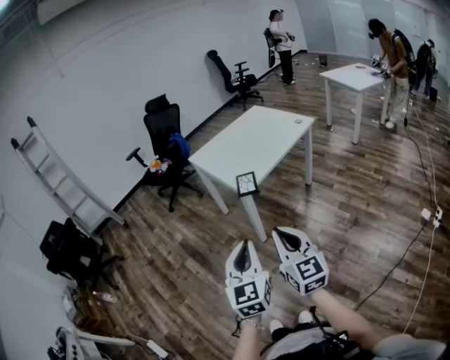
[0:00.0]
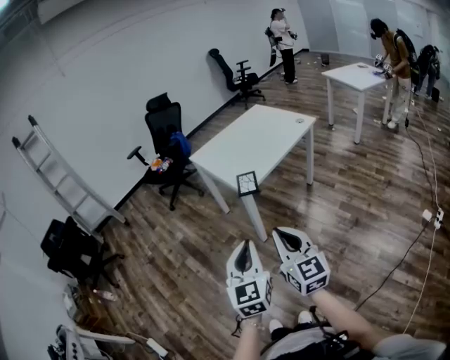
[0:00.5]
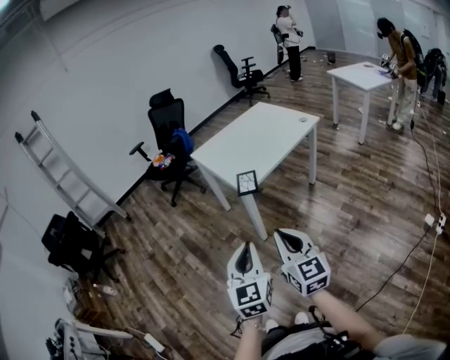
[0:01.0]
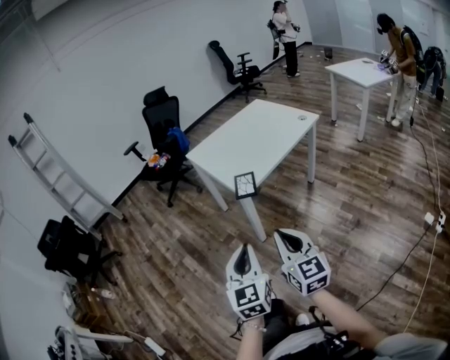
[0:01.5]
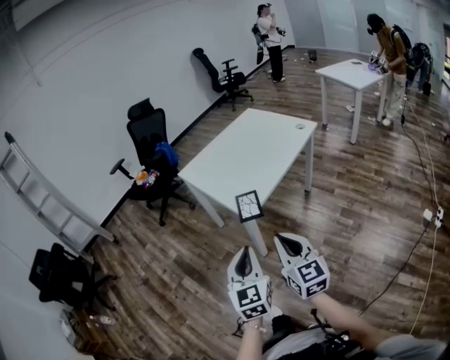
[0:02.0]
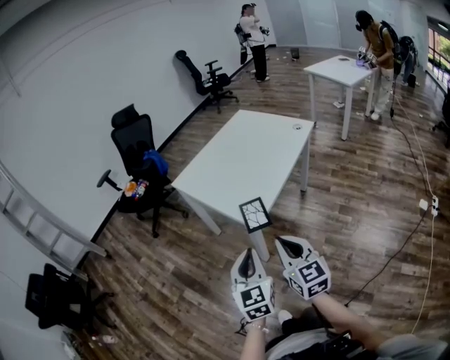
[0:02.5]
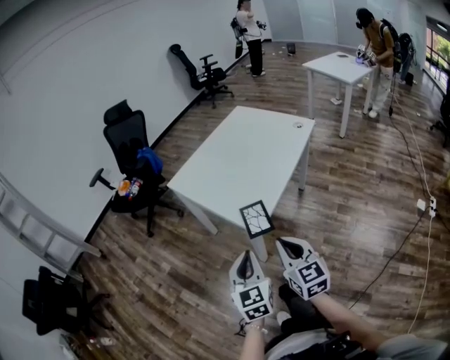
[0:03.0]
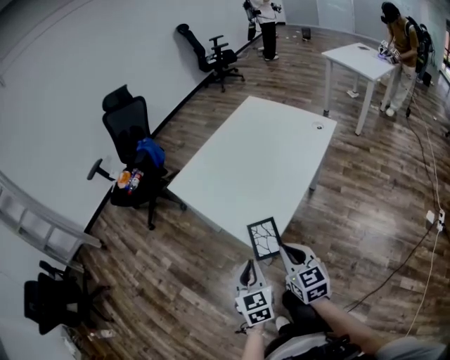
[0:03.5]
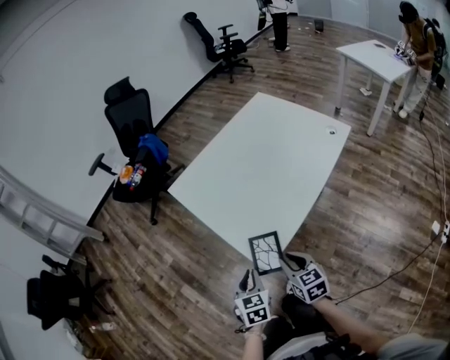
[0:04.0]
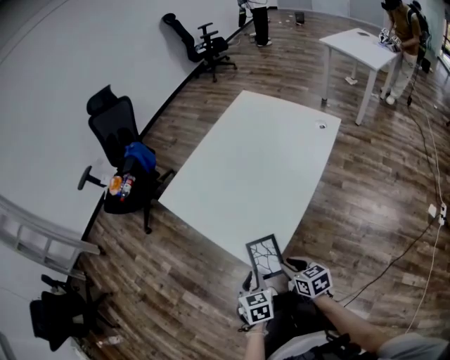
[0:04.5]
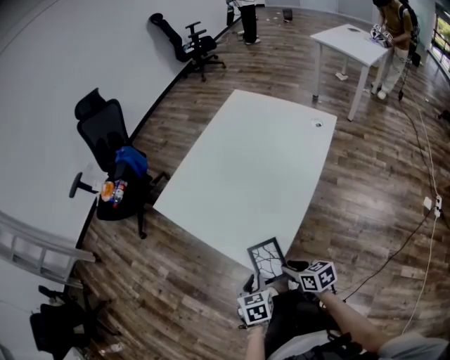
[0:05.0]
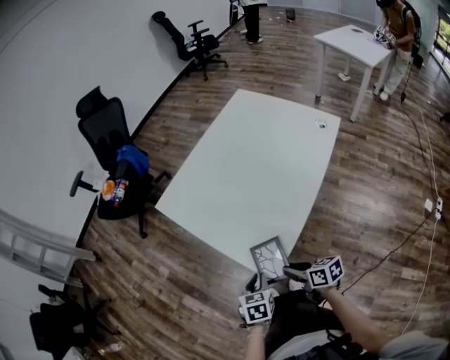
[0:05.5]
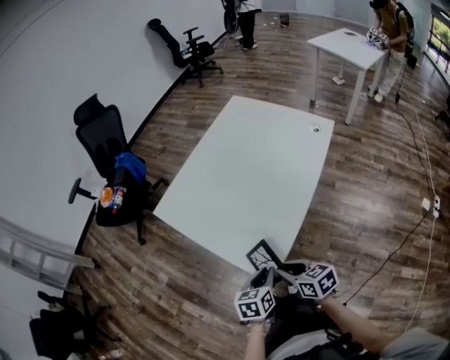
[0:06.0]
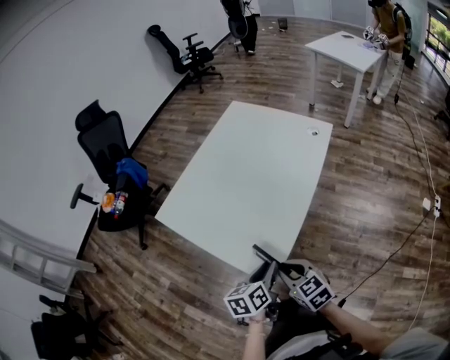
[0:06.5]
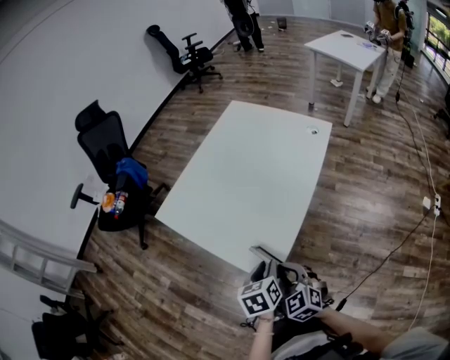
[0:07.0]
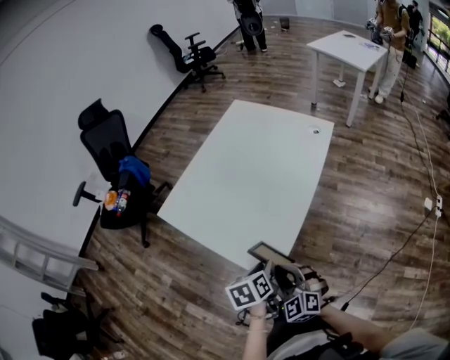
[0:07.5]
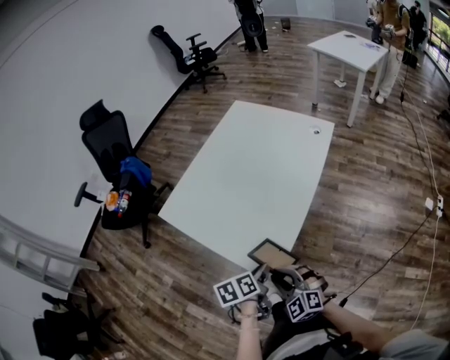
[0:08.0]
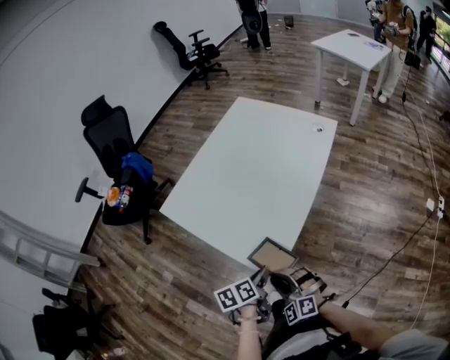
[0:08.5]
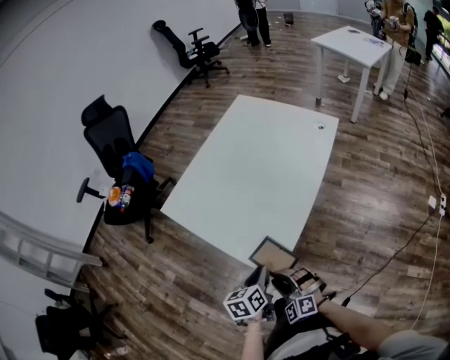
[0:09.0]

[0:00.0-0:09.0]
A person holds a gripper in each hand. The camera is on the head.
0:00.0 to 0:02.0: The grippers both shift forward by approximately 20 cm.
0:02.0 to 0:04.5: The two grippers go approximately 40 cm forward and downward. The right gripper tilts its fingers roughly 30 degrees downward, and opens; the left gripper points its fingers approximately 40 degrees further downward.
0:04.5 to 0:07.0: The left gripper moves upward, to the right and forward, some 10 cm, and changes its angle by some 20 degrees. Meanwhile the right gripper moves upward, approximately 10 cm, and changes its angle by roughly 40 degrees.
0:07.0 to 0:09.0: The left gripper moves some 5 cm, while the right gripper shifts some 10 cm downward and backward, and swivels about 30 degrees.

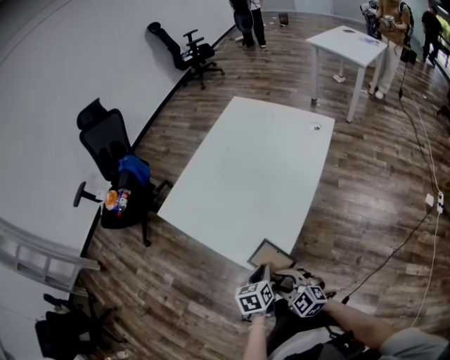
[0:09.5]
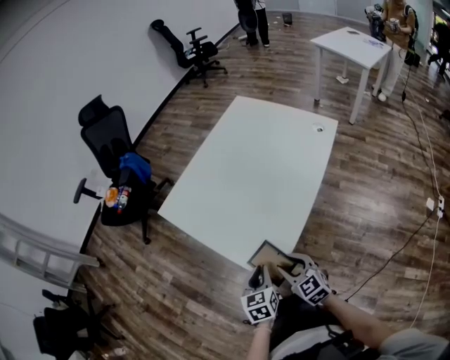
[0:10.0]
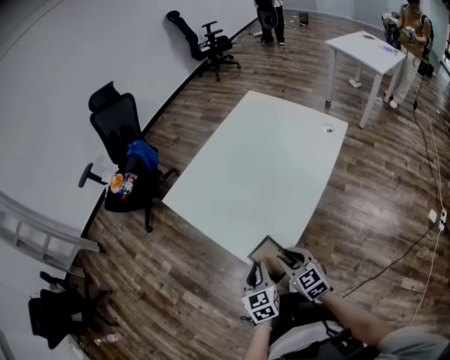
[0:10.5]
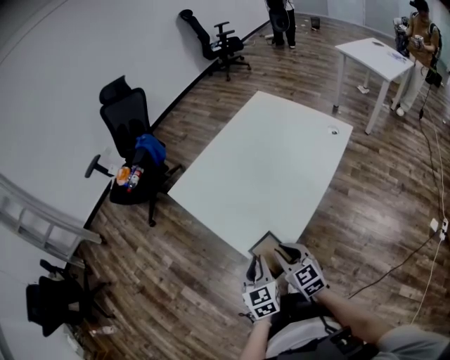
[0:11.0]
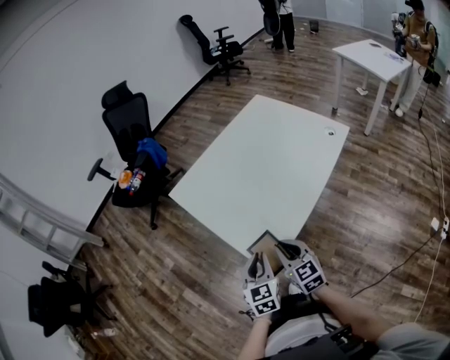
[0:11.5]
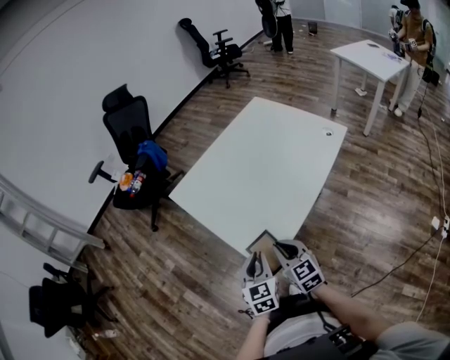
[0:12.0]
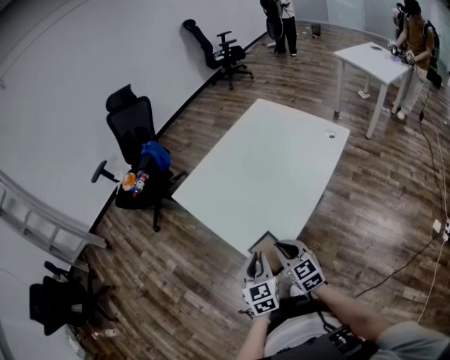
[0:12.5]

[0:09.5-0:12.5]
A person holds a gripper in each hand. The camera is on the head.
0:09.5 to 0:11.0: The left gripper shifts some 5 cm upward, and swivels approximately 30 degrees. The right gripper heads forward and to the right, covering approximately 10 cm, and closes up.
0:11.0 to 0:12.5: The grippers make only small movements.

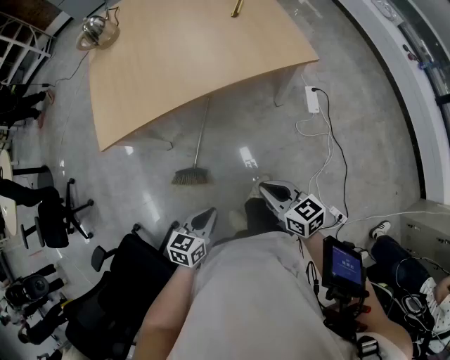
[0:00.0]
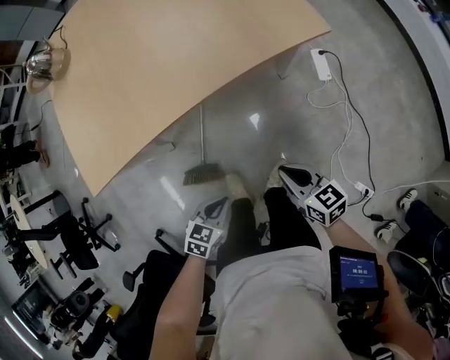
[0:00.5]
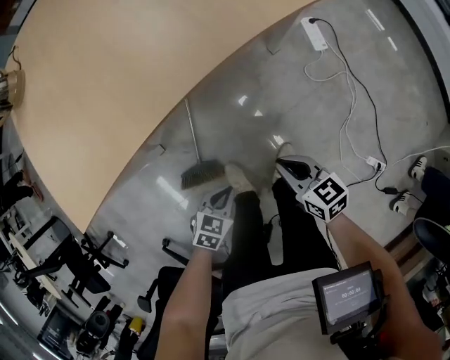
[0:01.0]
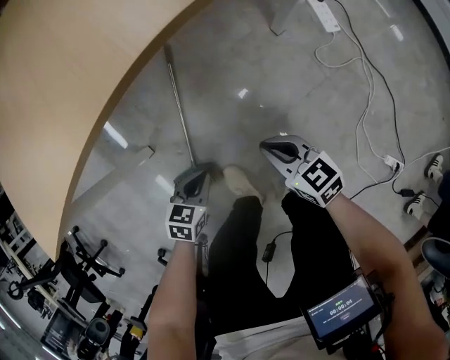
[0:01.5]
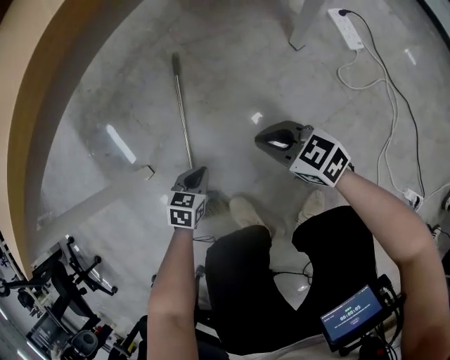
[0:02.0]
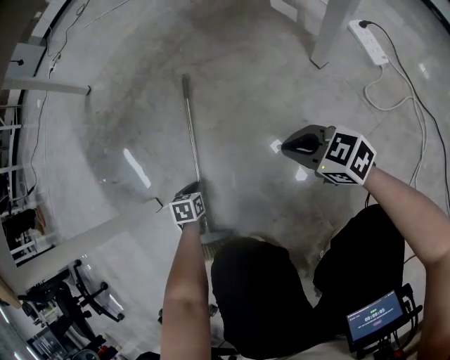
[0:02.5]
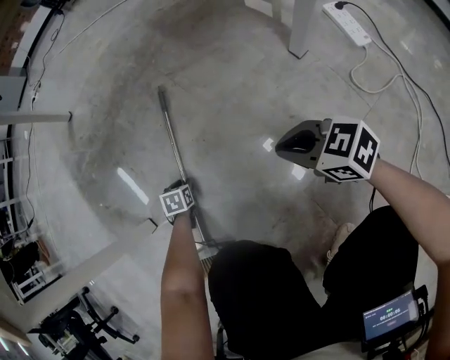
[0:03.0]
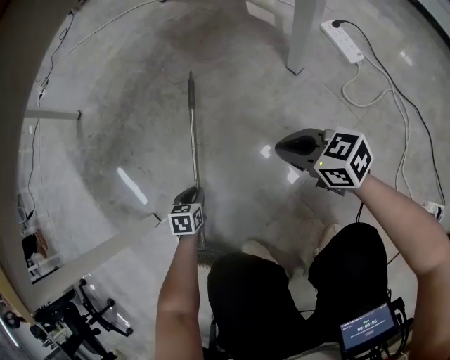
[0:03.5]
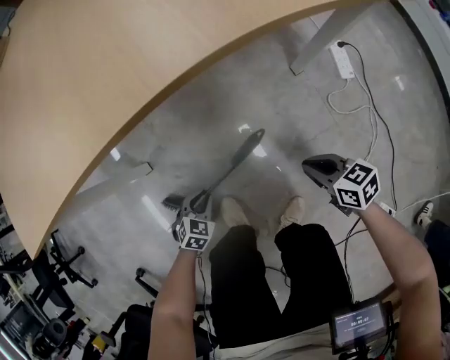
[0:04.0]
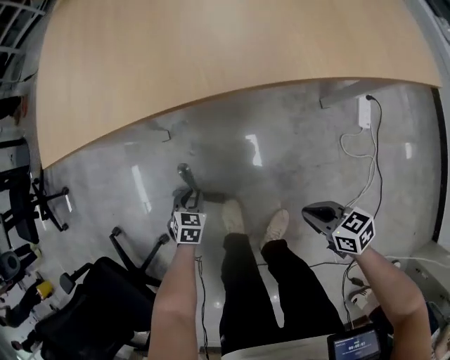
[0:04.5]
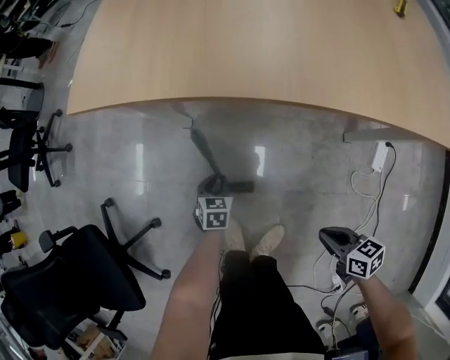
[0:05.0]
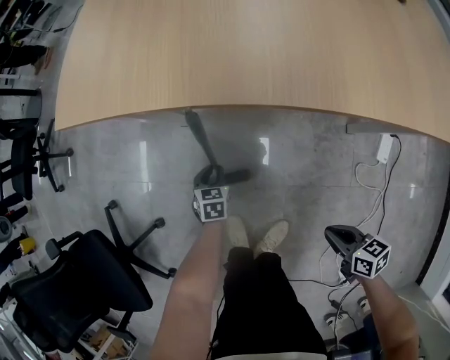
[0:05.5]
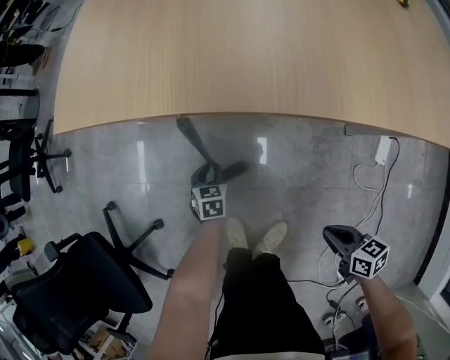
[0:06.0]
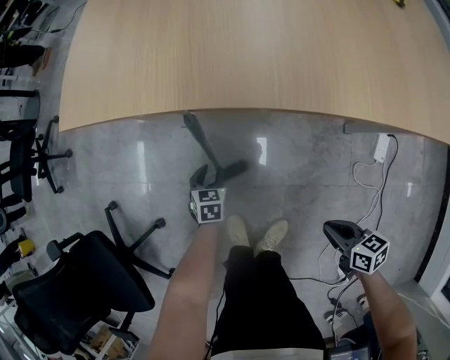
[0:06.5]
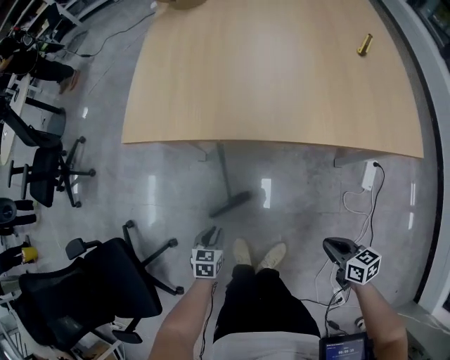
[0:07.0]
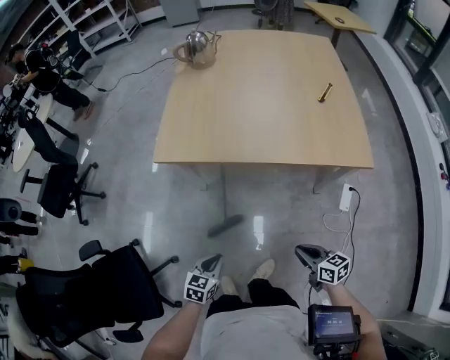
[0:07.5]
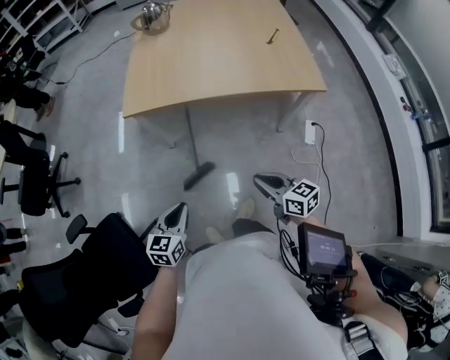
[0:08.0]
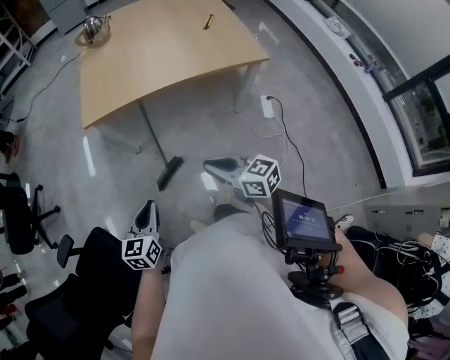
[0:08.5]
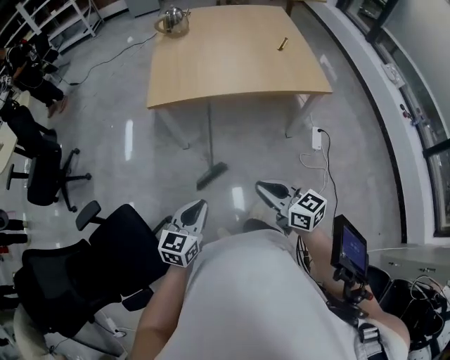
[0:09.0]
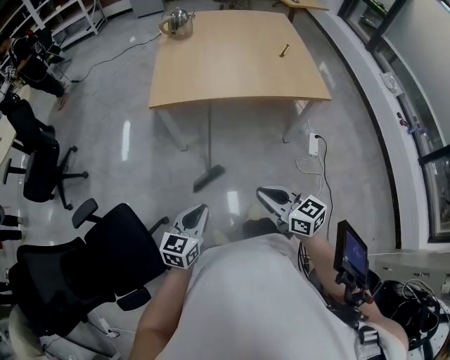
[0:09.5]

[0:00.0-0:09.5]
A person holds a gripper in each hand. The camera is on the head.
0:00.0 to 0:02.0: The two grippers go approximately 50 cm downward and forward. The left gripper changes its angle by some 30 degrees.
0:02.0 to 0:04.0: The left gripper travels backward by approximately 5 cm, and travels downward and back again, approximately 25 cm each way, while the right gripper travels to the right, backward and upward by roughly 15 cm, and changes its angle by roughly 20 degrees.
0:04.0 to 0:05.5: The right gripper shifts about 10 cm upward. Meanwhile the left gripper ends up approximately 10 cm from where it was, and rolls counterclockwise, seen from behind, by roughly 50 degrees.
0:05.5 to 0:07.5: The left gripper heads upward and backward, covering about 40 cm, and swivels roughly 20 degrees, while the right gripper heads upward, covering some 20 cm.
0:07.5 to 0:09.5: The right gripper shifts approximately 30 cm to the left, upward and backward, and rotates about 20 degrees. The left gripper is displaced upward, backward and to the left by some 25 cm, and swivels about 20 degrees.

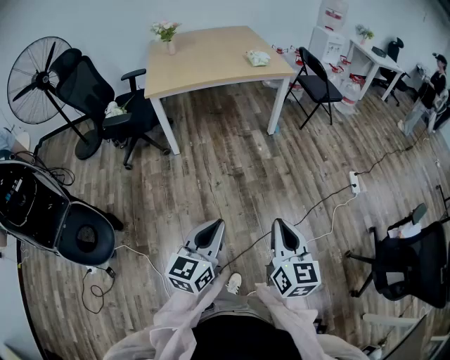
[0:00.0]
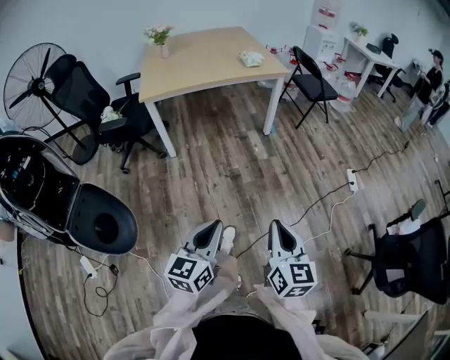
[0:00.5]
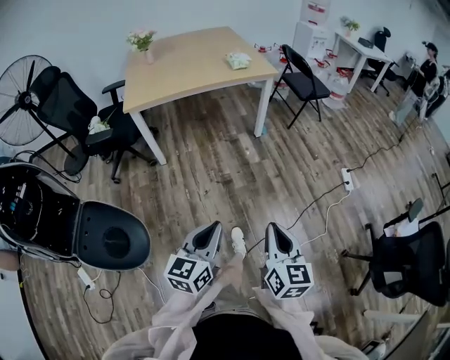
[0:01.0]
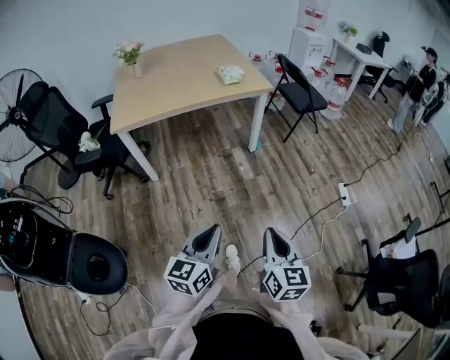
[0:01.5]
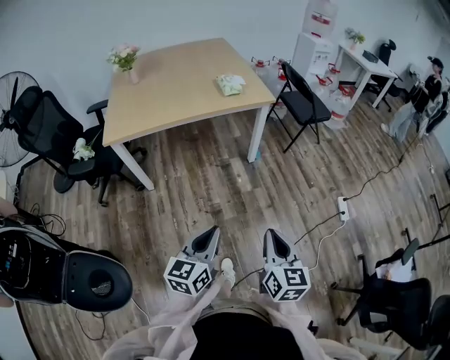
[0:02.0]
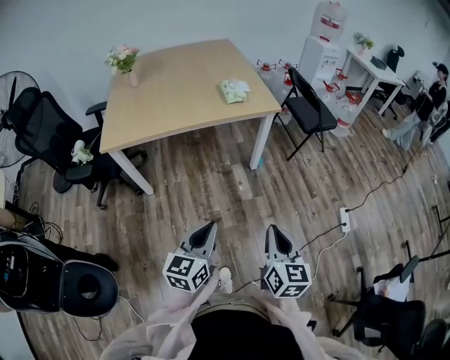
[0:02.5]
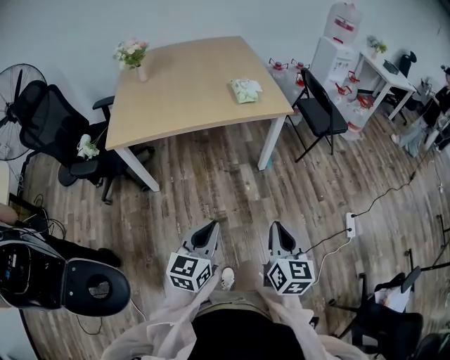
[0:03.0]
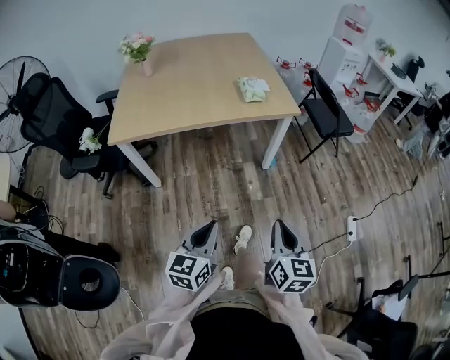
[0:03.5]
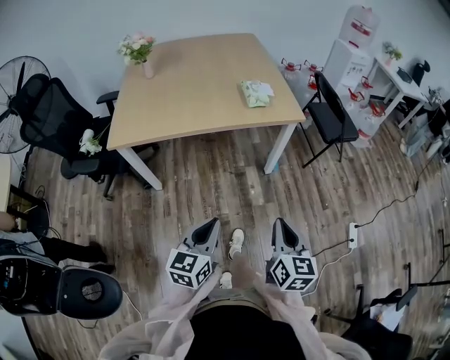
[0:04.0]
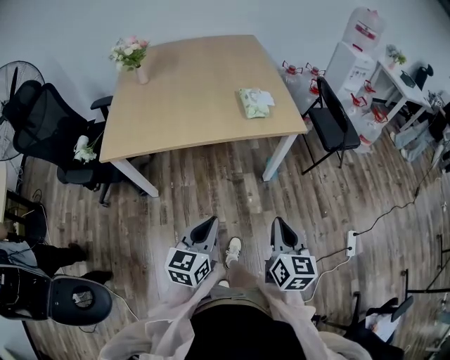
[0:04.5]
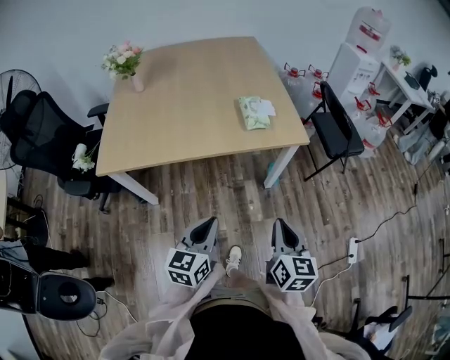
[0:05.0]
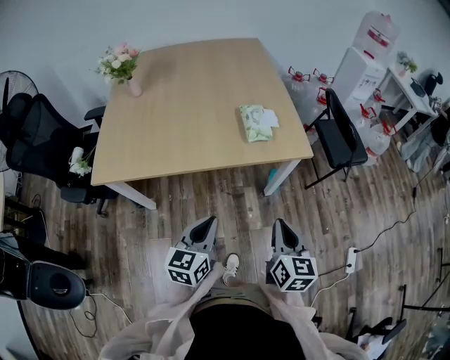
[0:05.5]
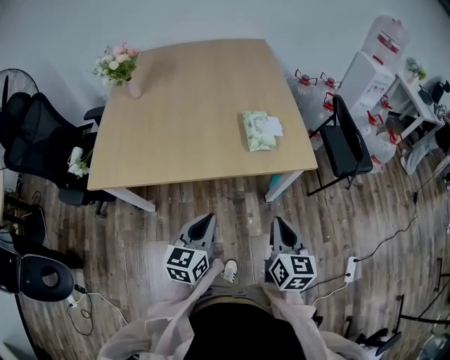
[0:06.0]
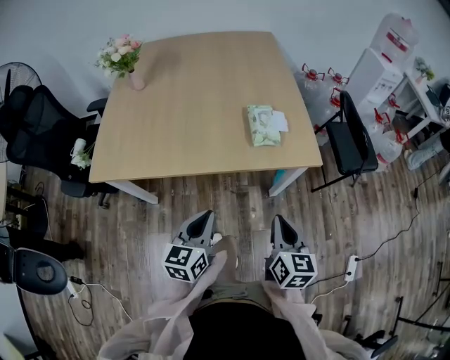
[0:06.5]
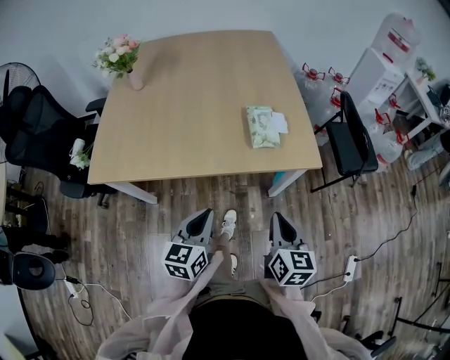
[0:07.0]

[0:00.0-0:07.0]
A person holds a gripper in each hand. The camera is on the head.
0:00.0 to 0:02.0: Both grippers travel together forward, roughly 30 cm.
0:02.0 to 0:03.5: Both grippers move forward, approximately 15 cm.
0:03.5 to 0:05.0: The grippers both shift forward by roughly 20 cm.
0:05.0 to 0:07.0: Both grippers move forward, approximately 15 cm.
